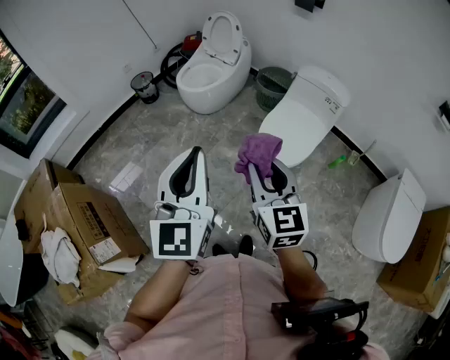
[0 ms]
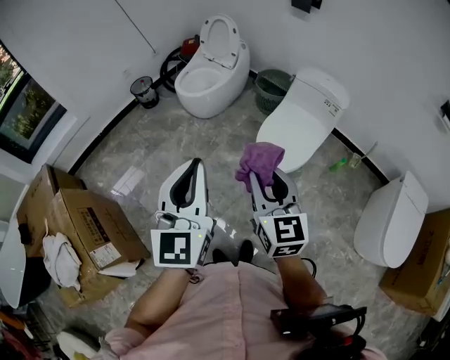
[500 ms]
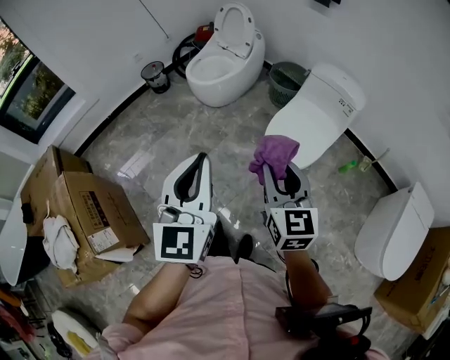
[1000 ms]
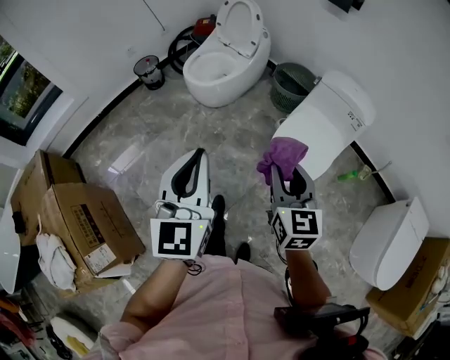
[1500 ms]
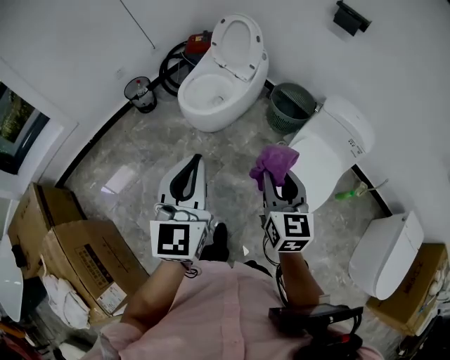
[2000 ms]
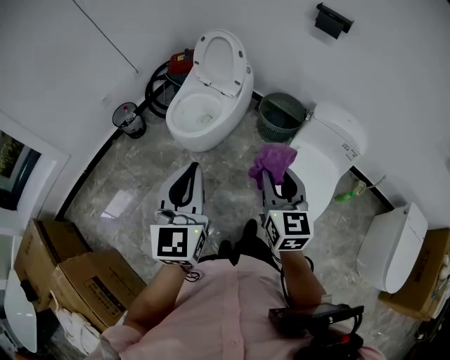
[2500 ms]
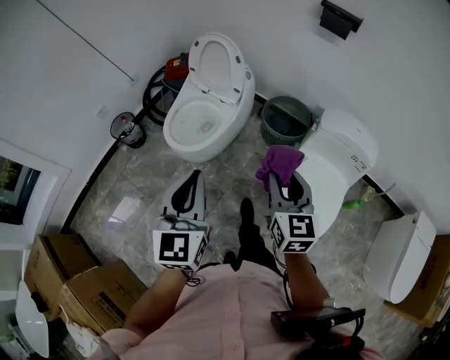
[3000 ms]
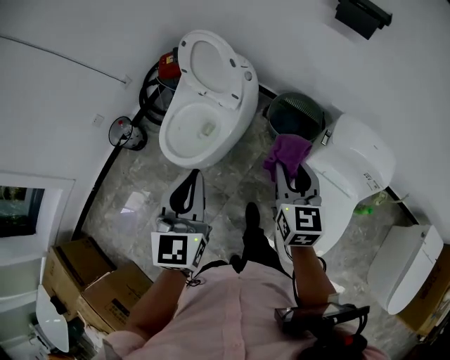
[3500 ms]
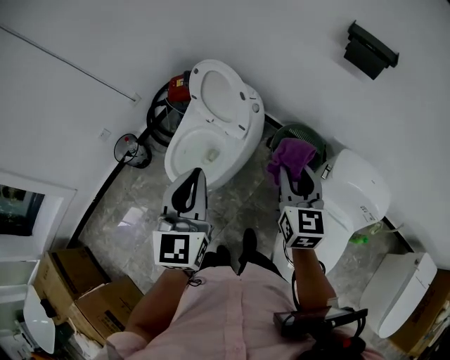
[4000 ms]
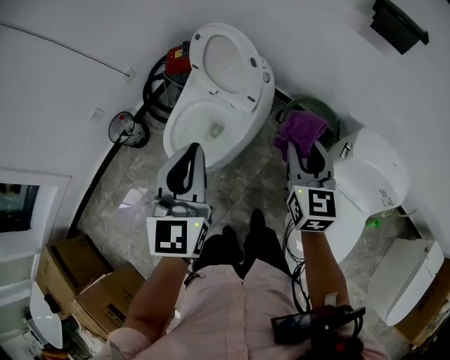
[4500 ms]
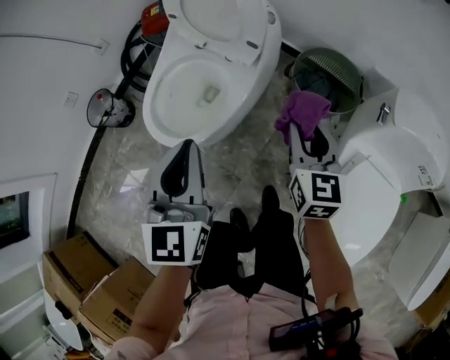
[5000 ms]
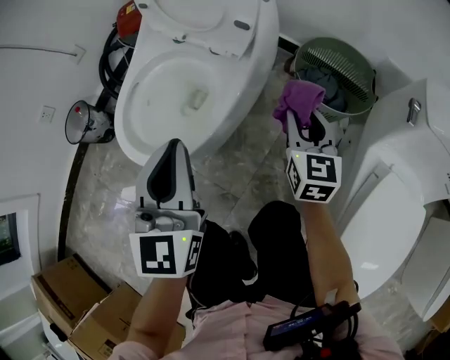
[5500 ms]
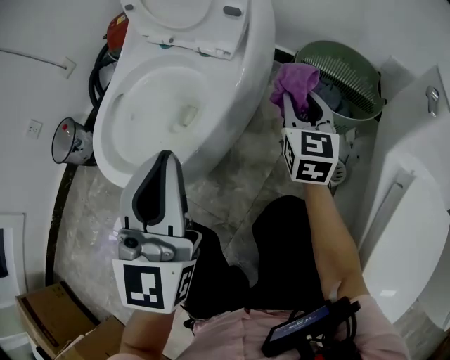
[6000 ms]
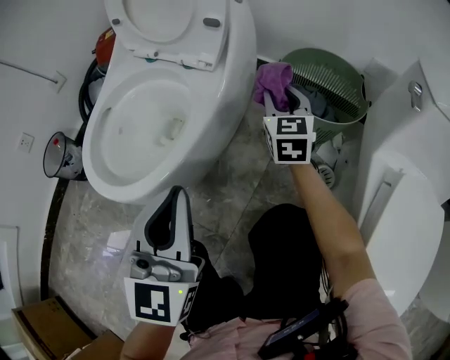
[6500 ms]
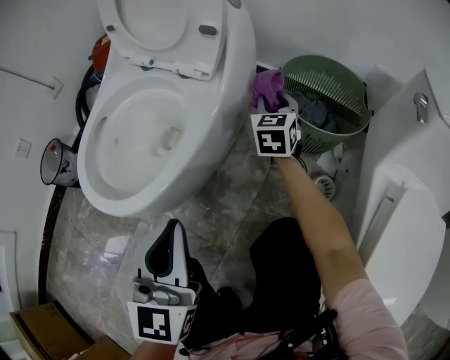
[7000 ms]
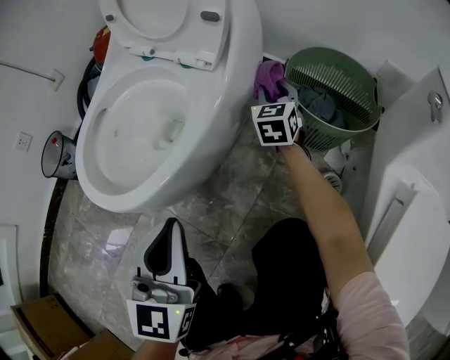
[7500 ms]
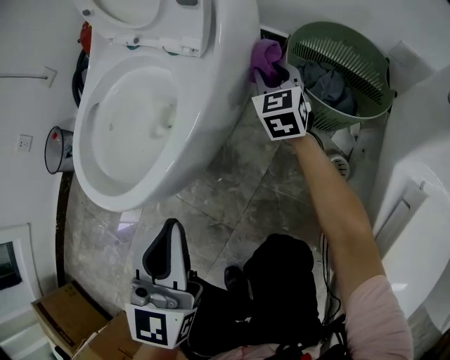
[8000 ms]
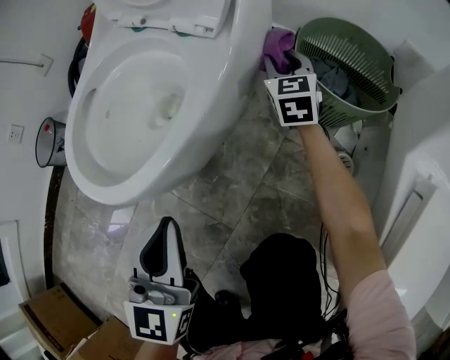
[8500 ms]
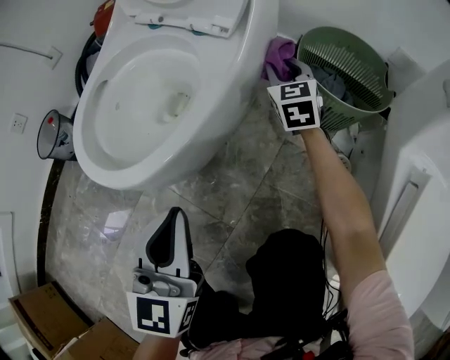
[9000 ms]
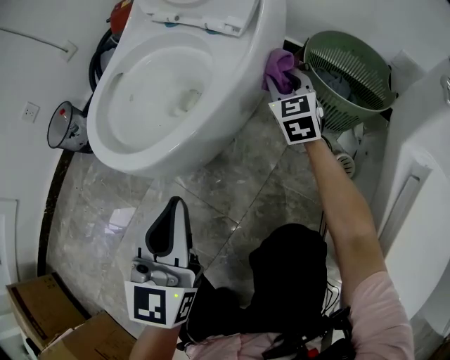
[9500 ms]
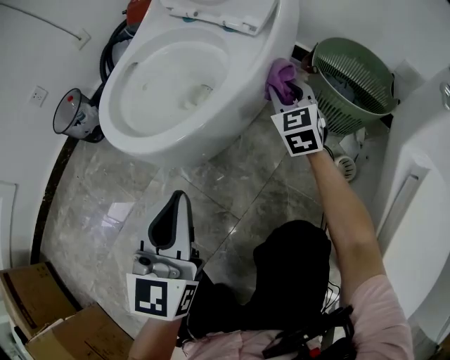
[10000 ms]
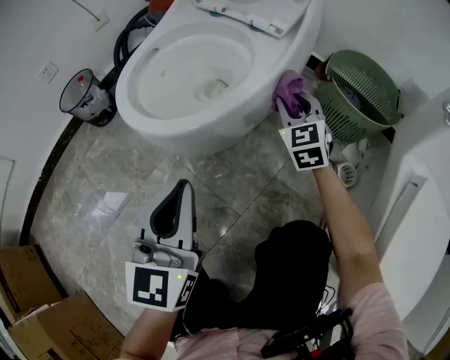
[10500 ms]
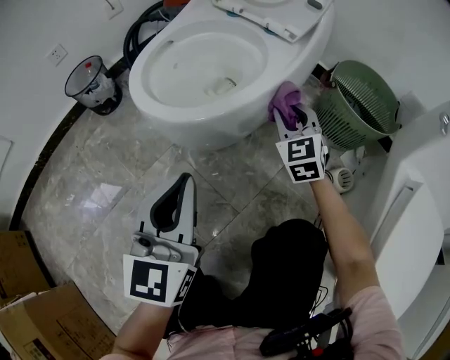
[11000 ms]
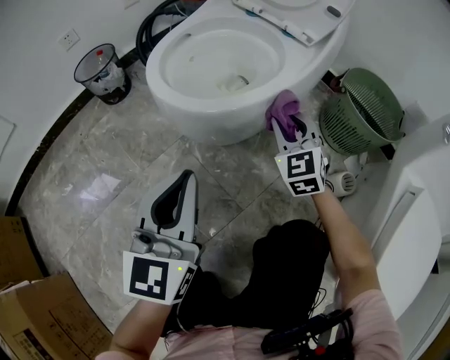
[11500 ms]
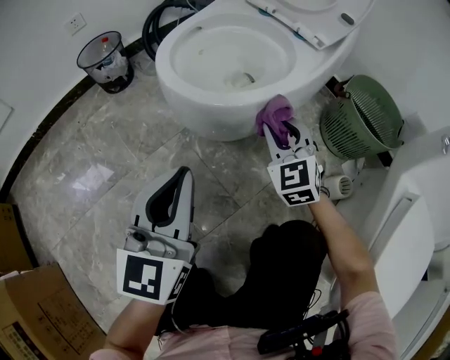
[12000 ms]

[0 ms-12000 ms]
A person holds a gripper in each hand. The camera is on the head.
0 ms to 2000 ms: The two grippers go about 30 cm forward.
2000 ms to 4000 ms: Both grippers are carried forward, some 40 cm.
4000 ms to 6000 ms: The grippers both shift downward by roughly 50 cm.
6000 ms to 8000 ms: The left gripper heads downward, covering approximately 10 cm, while the right gripper is displaced forward and downward by roughly 15 cm.
8000 ms to 10000 ms: The two grippers go roughly 15 cm backward and to the left.
10000 ms to 12000 ms: The left gripper goes roughly 10 cm to the left and backward. The right gripper heads to the left and backward, covering approximately 20 cm, and changes its angle by approximately 20 degrees.

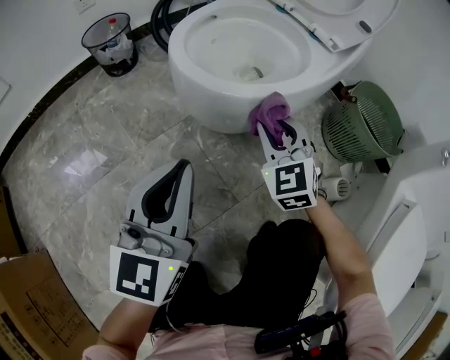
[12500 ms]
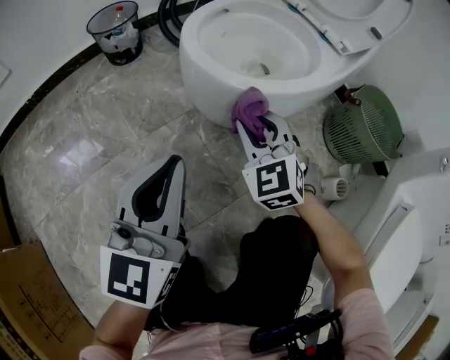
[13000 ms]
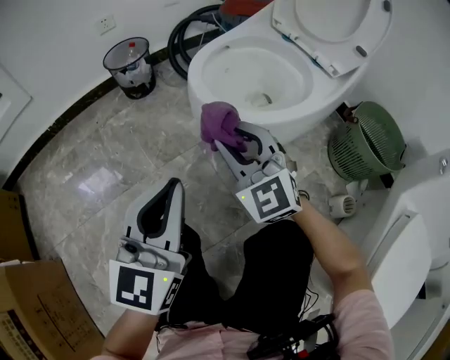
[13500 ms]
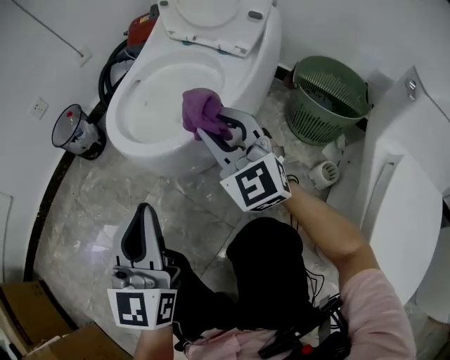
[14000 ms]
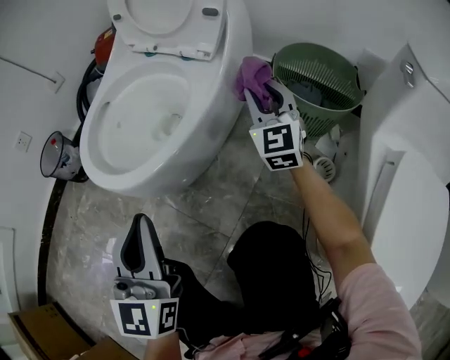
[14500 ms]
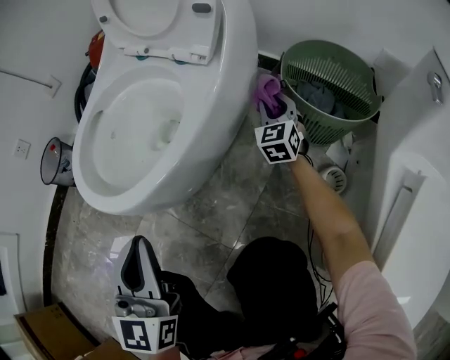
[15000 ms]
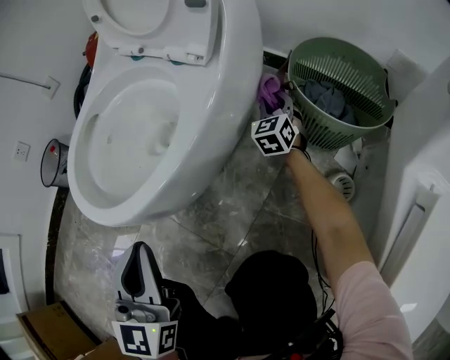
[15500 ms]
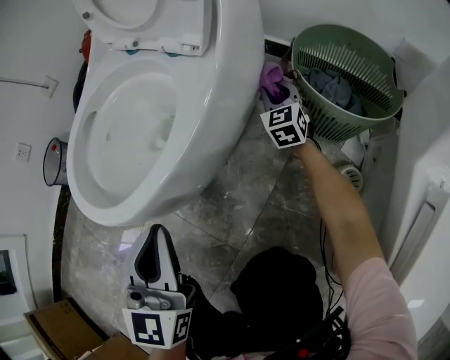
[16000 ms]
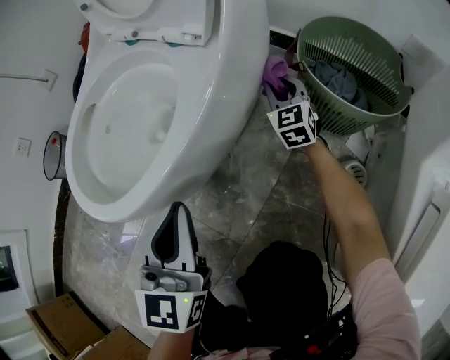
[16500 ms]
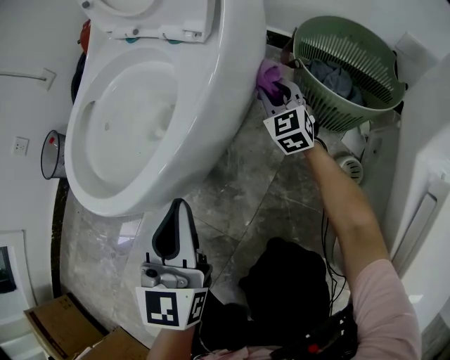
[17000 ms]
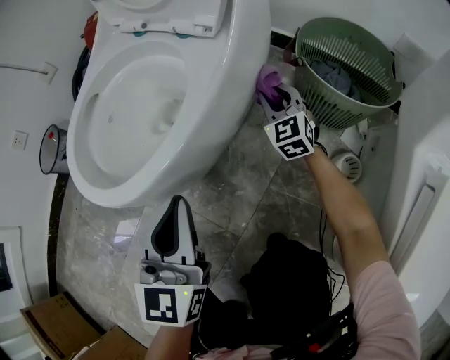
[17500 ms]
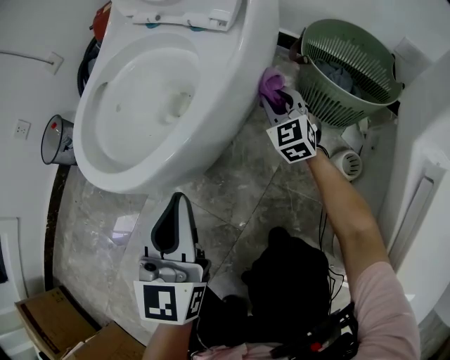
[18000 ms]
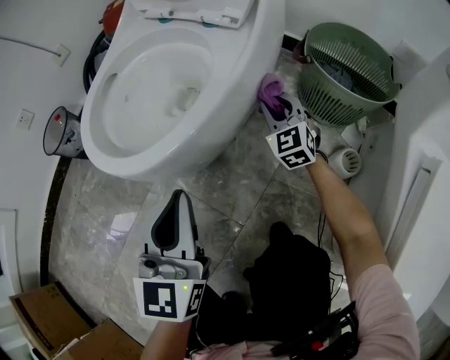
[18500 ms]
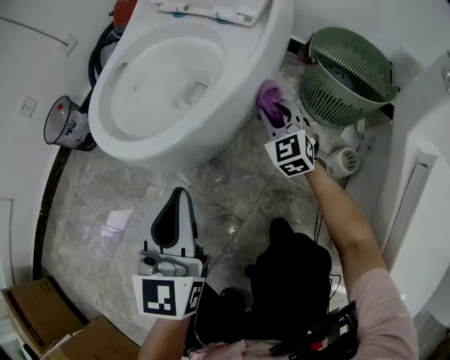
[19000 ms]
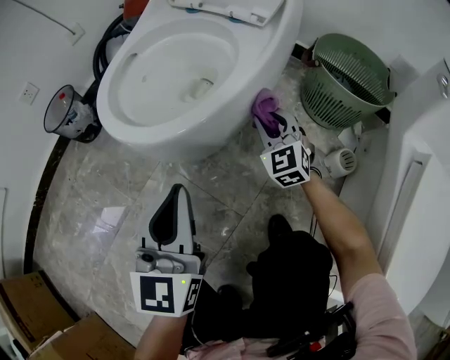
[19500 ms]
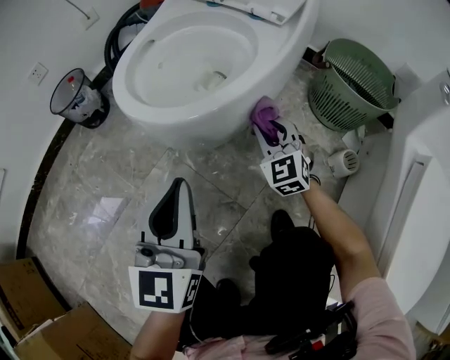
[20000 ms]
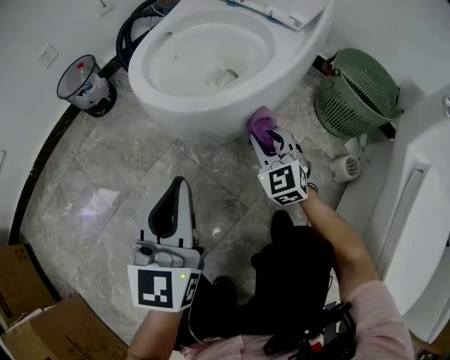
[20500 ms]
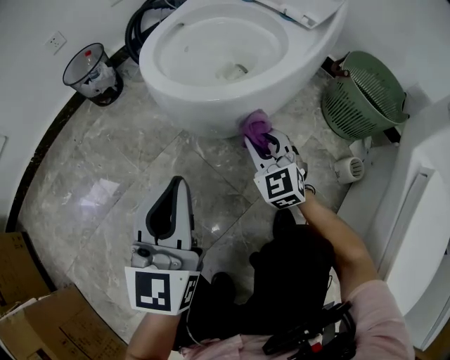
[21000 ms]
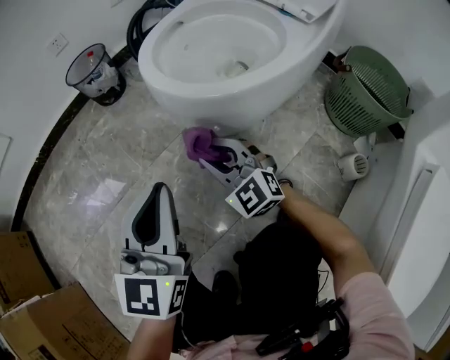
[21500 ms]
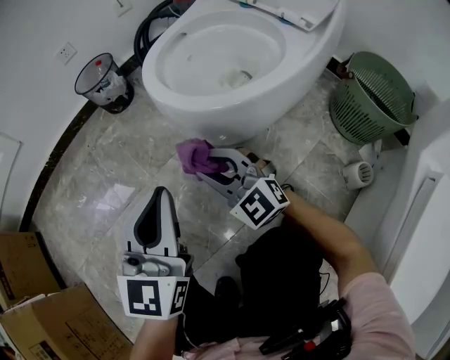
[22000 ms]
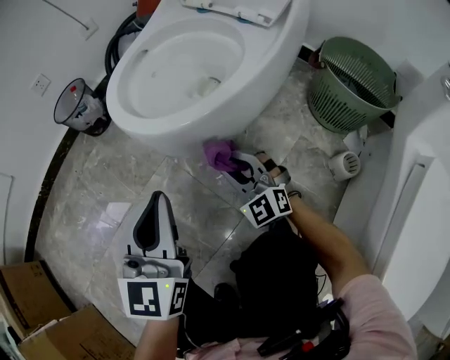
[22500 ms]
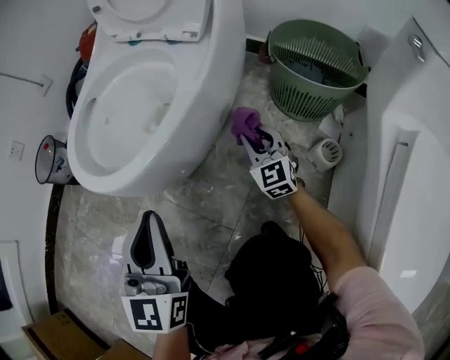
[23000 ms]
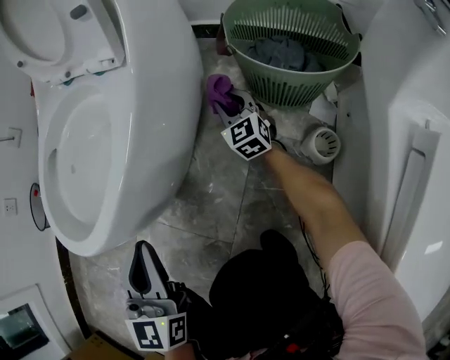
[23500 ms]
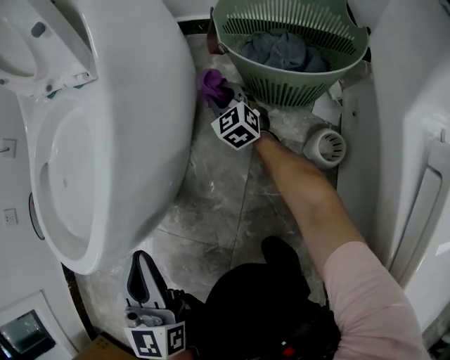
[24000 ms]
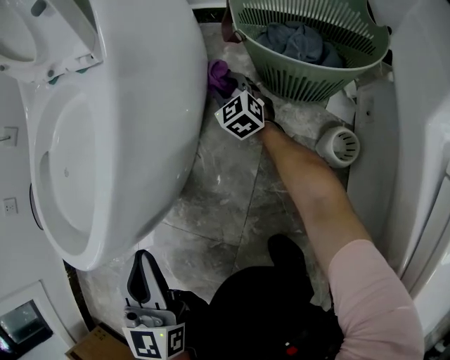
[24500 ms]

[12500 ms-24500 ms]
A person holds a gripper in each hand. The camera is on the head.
12500 ms to 14500 ms: The left gripper ends up roughly 15 cm from where it was, while the right gripper ends up approximately 30 cm from where it was, and swivels about 30 degrees.
14500 ms to 16500 ms: The left gripper travels forward, downward and to the right by roughly 15 cm. Meanwhile the right gripper shifts approximately 25 cm downward and forward.
16500 ms to 18500 ms: The right gripper travels backward and to the left by approximately 15 cm. Meanwhile the left gripper moves backward and to the left, approximately 10 cm.
18500 ms to 20500 ms: The left gripper moves to the left and backward, approximately 10 cm; the right gripper goes some 20 cm to the left and backward.
20500 ms to 22500 ms: The right gripper goes to the left and returns, approximately 20 cm each way, and turns by roughly 20 degrees.
22500 ms to 24500 ms: The right gripper shifts roughly 40 cm forward, to the right and downward, and rotates roughly 40 degrees; the left gripper is displaced forward, to the right and downward by approximately 20 cm.

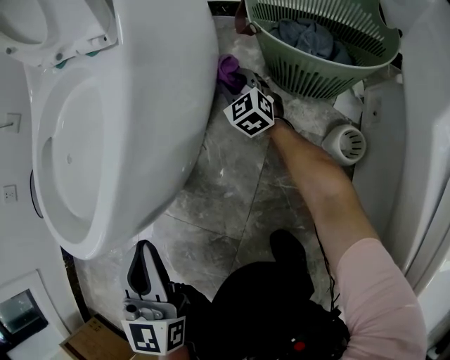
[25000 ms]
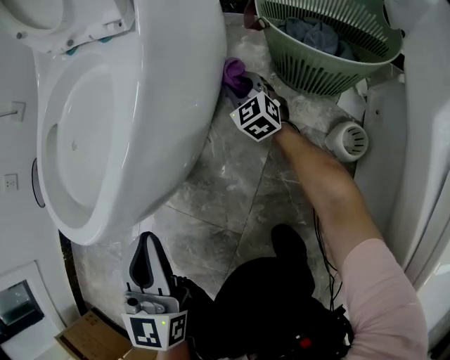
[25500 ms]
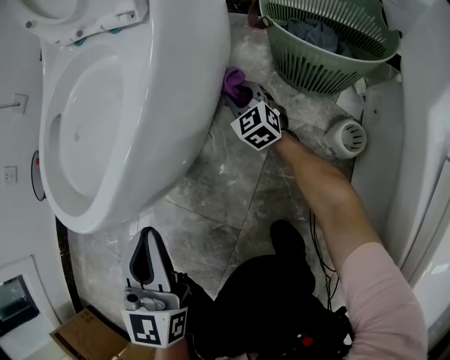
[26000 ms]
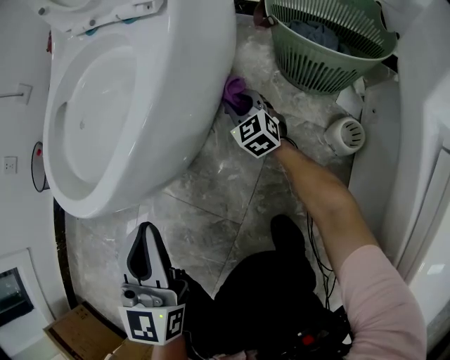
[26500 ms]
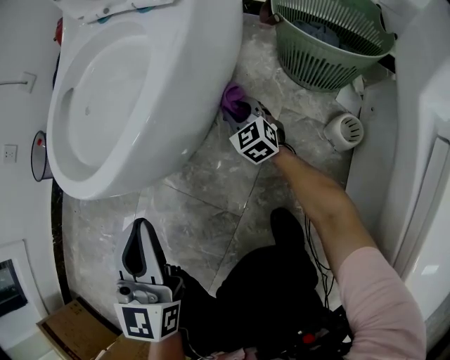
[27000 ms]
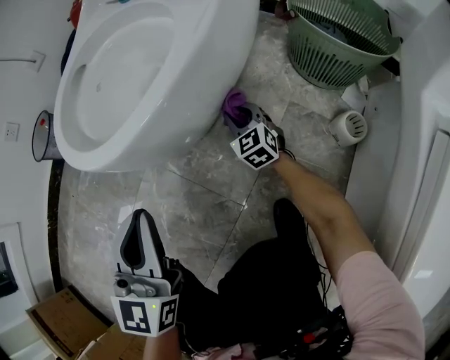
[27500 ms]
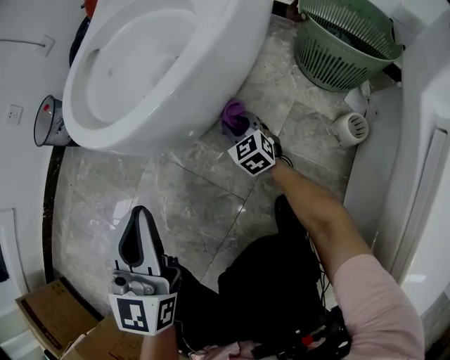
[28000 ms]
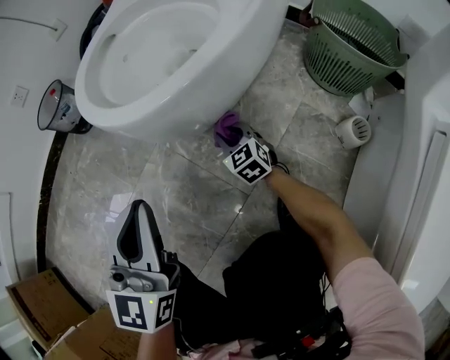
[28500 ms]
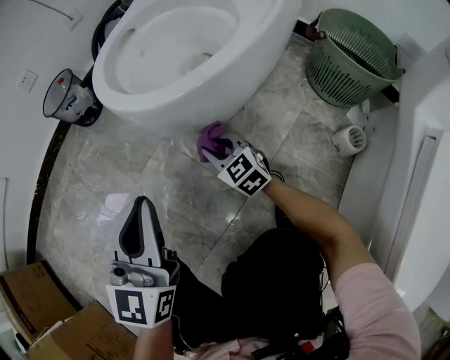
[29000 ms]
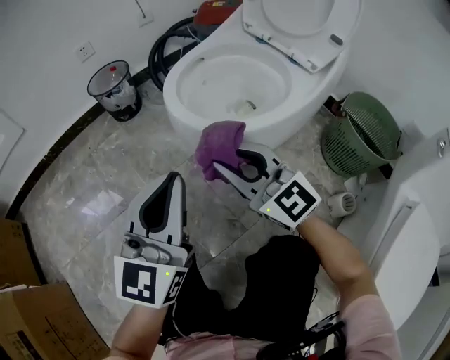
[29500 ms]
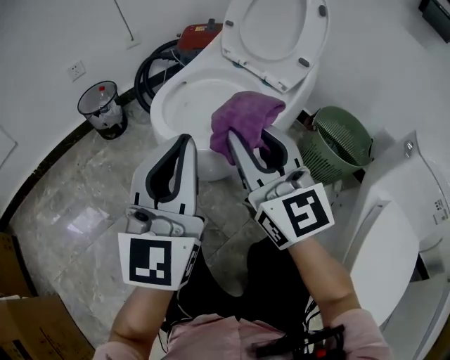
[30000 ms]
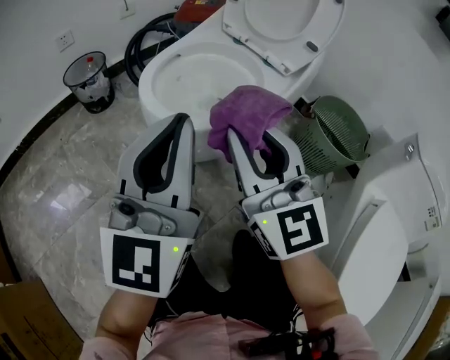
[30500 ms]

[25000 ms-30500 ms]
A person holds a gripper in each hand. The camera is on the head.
25000 ms to 27000 ms: The right gripper shifts approximately 15 cm backward and to the left; the left gripper travels backward by about 5 cm.
27000 ms to 28500 ms: The right gripper heads to the left and backward, covering about 20 cm; the left gripper is displaced to the left and backward by roughly 10 cm.
28500 ms to 30500 ms: The right gripper shifts some 50 cm upward, and tilts its fingers some 40 degrees upward, while the left gripper heads upward, covering roughly 20 cm, and swivels about 20 degrees.
